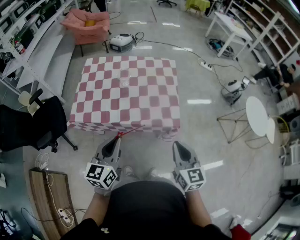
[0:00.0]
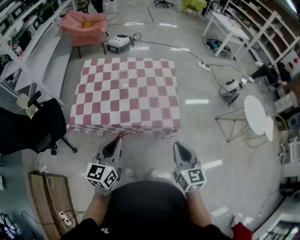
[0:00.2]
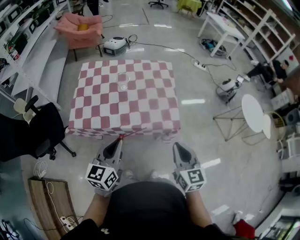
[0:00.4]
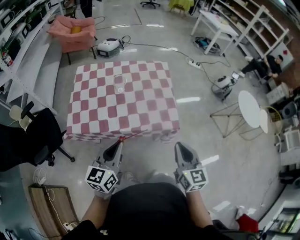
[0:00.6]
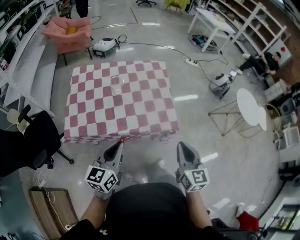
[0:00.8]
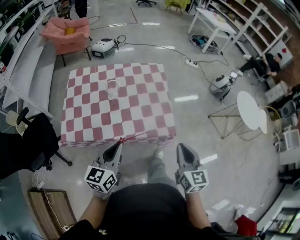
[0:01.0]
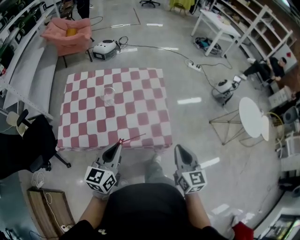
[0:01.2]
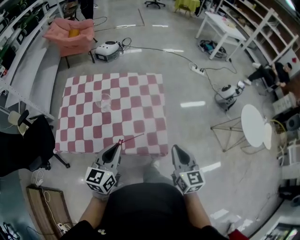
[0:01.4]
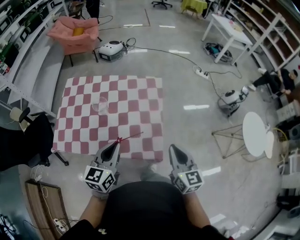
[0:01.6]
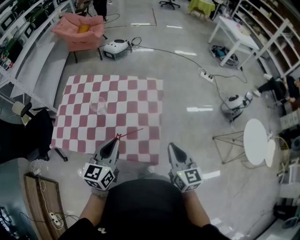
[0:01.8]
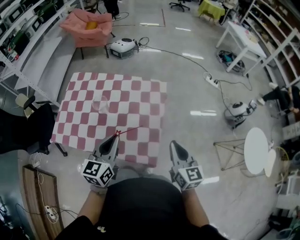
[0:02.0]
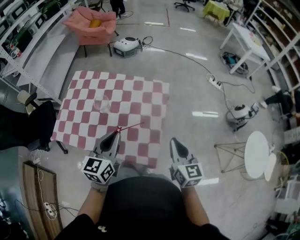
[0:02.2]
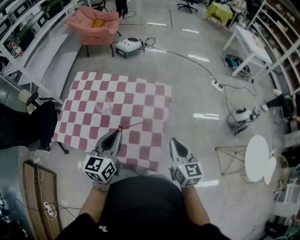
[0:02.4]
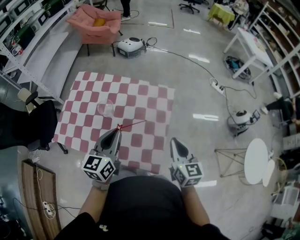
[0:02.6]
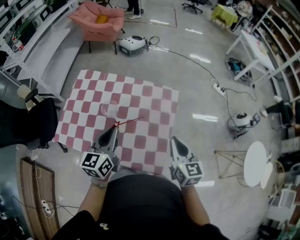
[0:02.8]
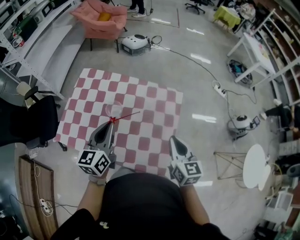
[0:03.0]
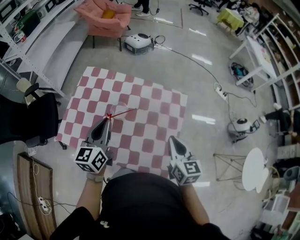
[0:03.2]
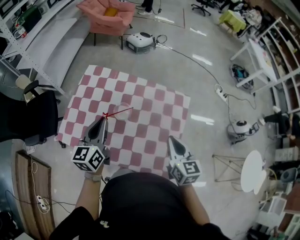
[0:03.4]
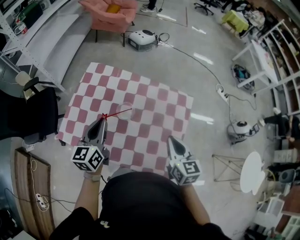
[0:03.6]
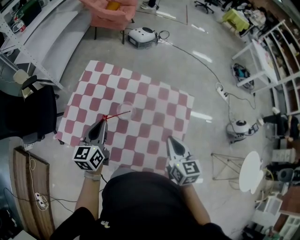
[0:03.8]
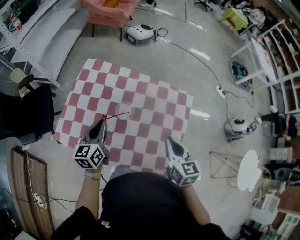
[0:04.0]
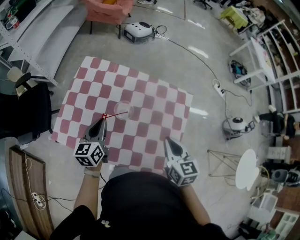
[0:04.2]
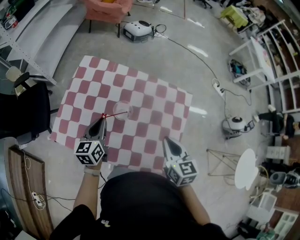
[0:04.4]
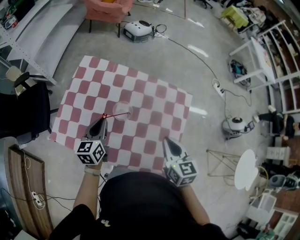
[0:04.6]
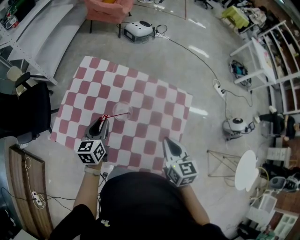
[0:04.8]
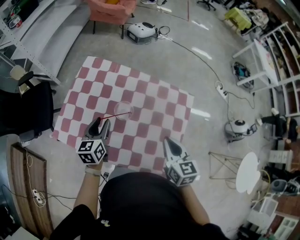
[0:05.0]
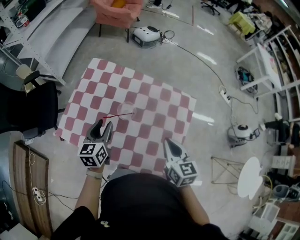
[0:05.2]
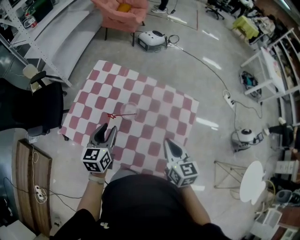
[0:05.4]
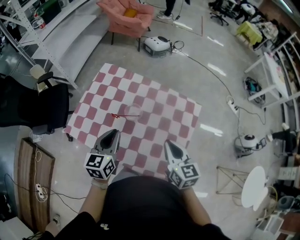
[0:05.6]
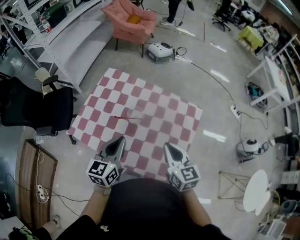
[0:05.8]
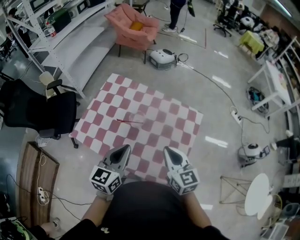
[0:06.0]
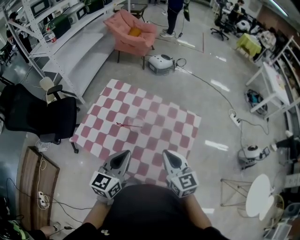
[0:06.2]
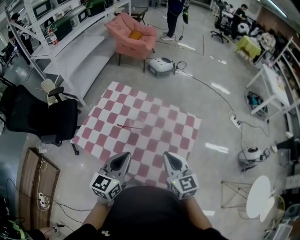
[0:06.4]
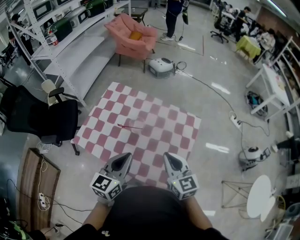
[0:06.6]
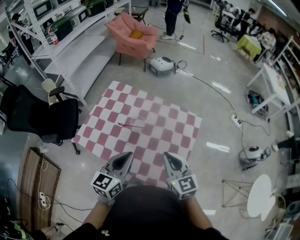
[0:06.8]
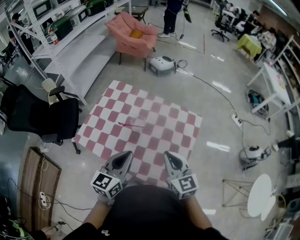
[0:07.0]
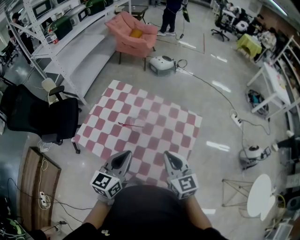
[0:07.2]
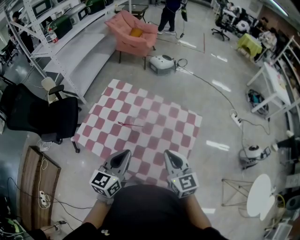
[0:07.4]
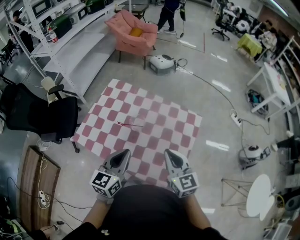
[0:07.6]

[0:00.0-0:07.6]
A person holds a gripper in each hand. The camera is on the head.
0:00.0 to 0:01.6: The right gripper heads forward, covering approximately 20 cm; the left gripper shifts about 25 cm forward and to the right.
0:01.6 to 0:03.0: The left gripper travels forward and to the left by roughly 15 cm; the right gripper travels forward by approximately 15 cm.
0:03.0 to 0:04.6: The right gripper heads to the left and forward, covering some 10 cm; the left gripper is displaced downward, to the left and forward by approximately 20 cm.
0:04.6 to 0:06.0: The left gripper is displaced backward, upward and to the right by approximately 20 cm, and opens, then closes once more, while the right gripper travels upward by approximately 5 cm, and rotates some 20 degrees.
0:06.0 to 0:07.6: The grippers stay close to where they were, moving slightly.

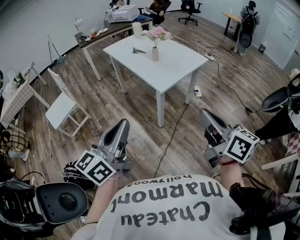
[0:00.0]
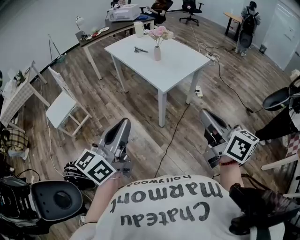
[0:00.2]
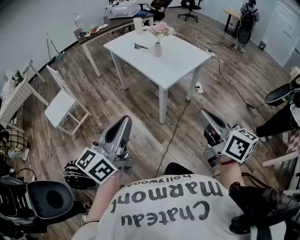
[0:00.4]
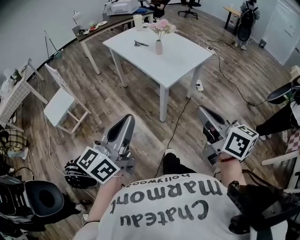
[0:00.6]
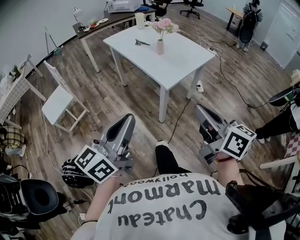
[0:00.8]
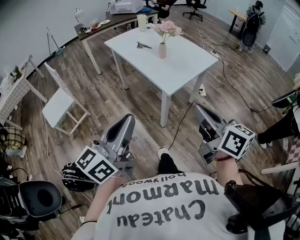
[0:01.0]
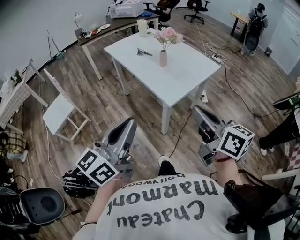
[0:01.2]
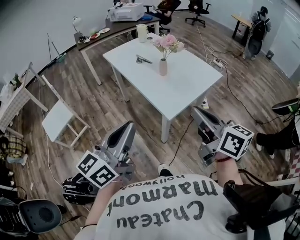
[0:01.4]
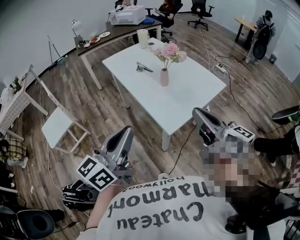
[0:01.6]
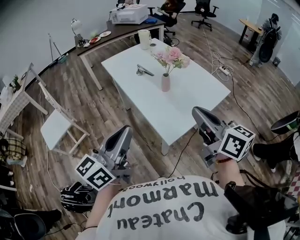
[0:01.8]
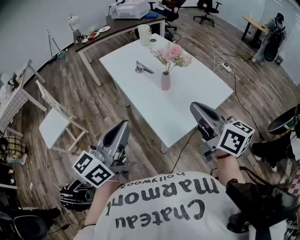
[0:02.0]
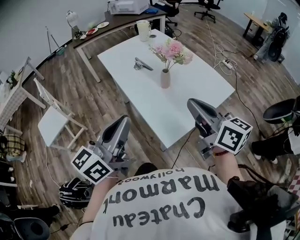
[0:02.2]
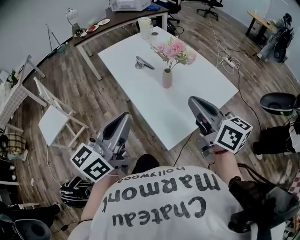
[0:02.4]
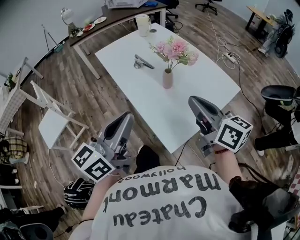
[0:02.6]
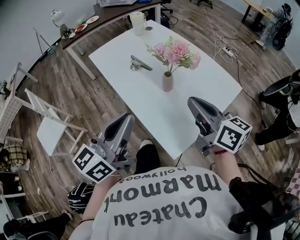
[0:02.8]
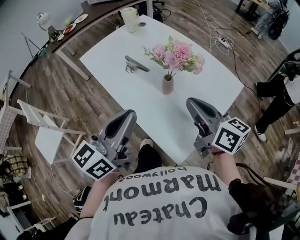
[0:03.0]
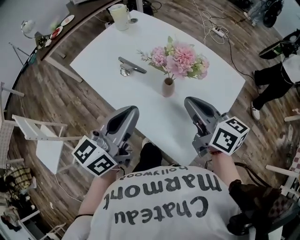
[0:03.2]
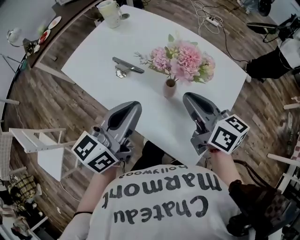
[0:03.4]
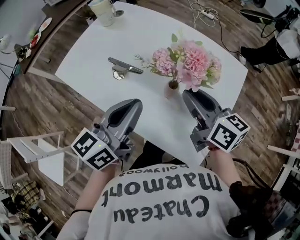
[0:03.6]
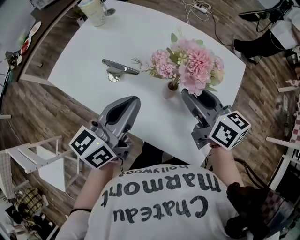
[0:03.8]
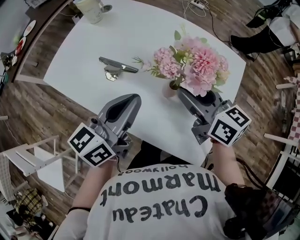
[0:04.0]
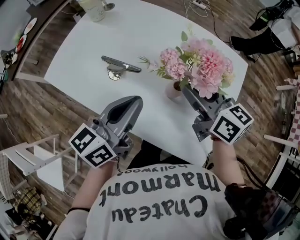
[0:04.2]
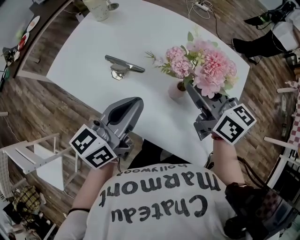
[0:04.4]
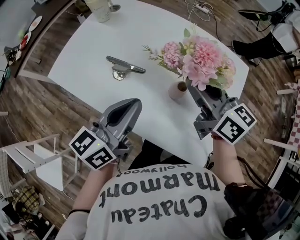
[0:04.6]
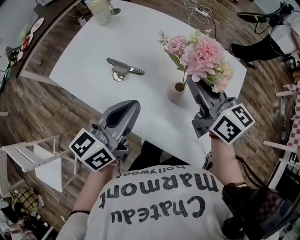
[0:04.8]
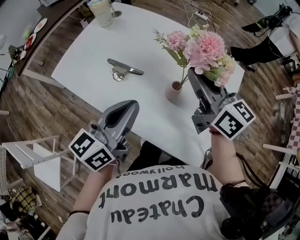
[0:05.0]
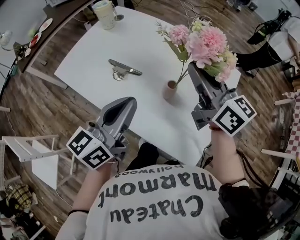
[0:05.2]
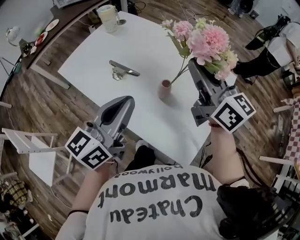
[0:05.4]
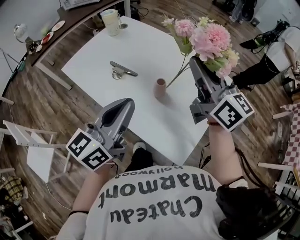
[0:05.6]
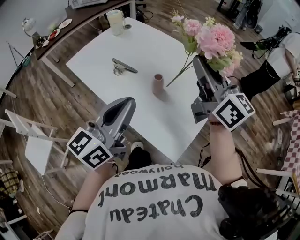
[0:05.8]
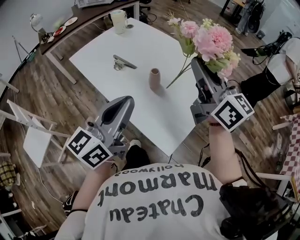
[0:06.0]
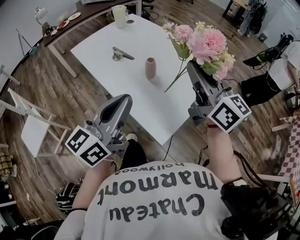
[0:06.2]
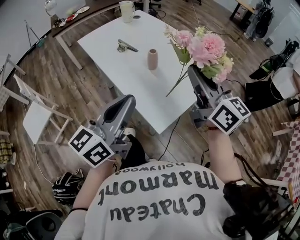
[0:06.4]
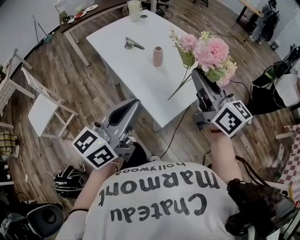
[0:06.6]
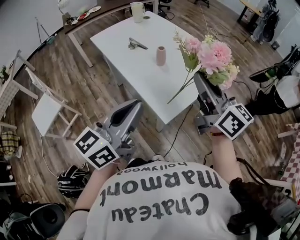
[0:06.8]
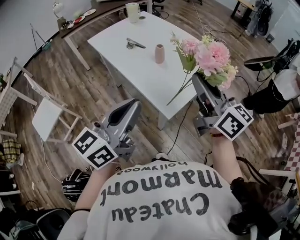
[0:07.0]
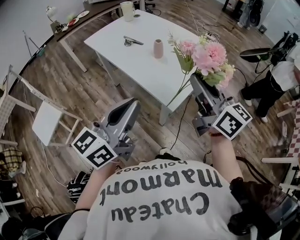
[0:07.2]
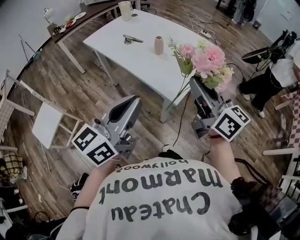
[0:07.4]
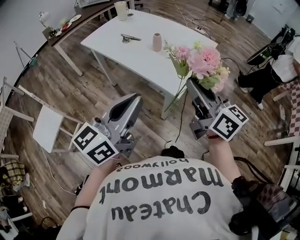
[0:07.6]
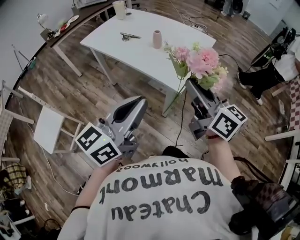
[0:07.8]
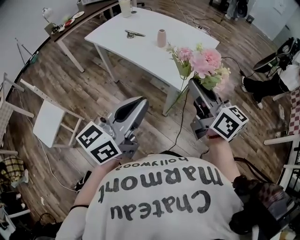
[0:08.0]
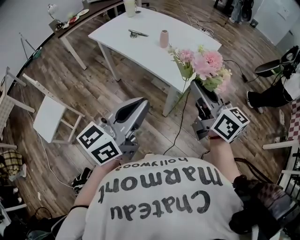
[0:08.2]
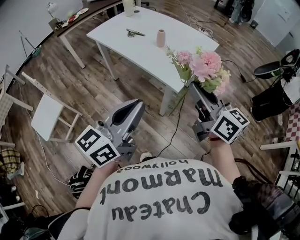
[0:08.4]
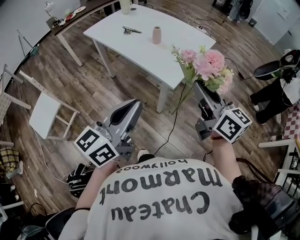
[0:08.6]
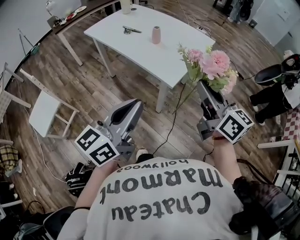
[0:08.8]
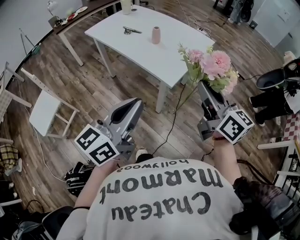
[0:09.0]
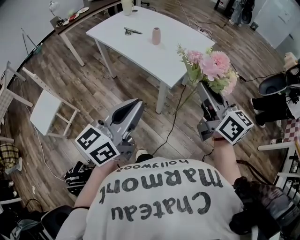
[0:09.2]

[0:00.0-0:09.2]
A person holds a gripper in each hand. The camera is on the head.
0:00.0 to 0:01.6: The grippers both shift forward by approximately 30 cm.
0:01.6 to 0:03.0: The two grippers go some 25 cm forward.
0:03.0 to 0:04.6: The right gripper heads forward and to the left, covering some 15 cm, and opens up; the left gripper heads forward and downward, covering some 15 cm, and turns by about 20 degrees.
0:04.6 to 0:06.2: The right gripper heads backward, upward and to the right, covering approximately 25 cm, rotates some 20 degrees, and closes up; the left gripper goes some 25 cm backward, to the right and upward, and rotates approximately 30 degrees.
0:06.2 to 0:07.6: The two grippers go roughly 25 cm backward.
0:07.6 to 0:09.2: The left gripper goes about 5 cm backward. The right gripper shifts about 10 cm to the right and backward.

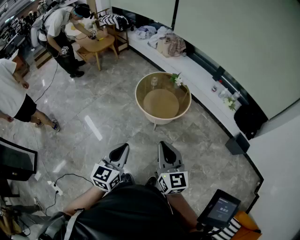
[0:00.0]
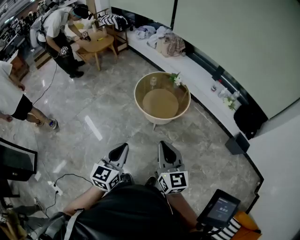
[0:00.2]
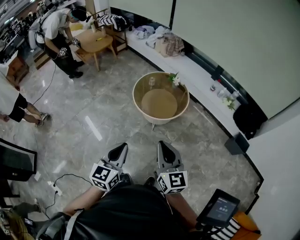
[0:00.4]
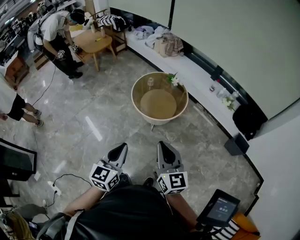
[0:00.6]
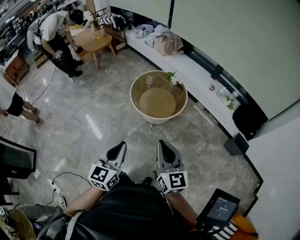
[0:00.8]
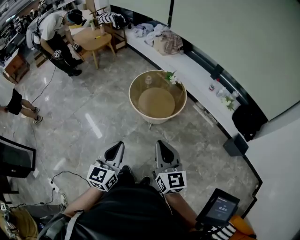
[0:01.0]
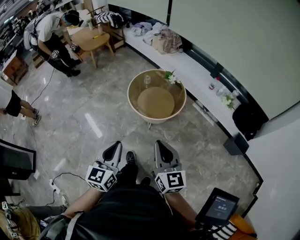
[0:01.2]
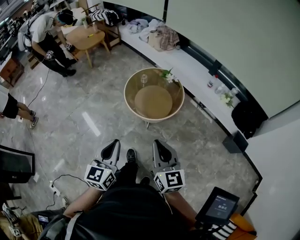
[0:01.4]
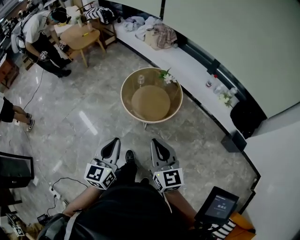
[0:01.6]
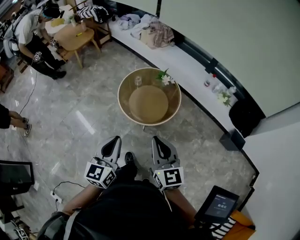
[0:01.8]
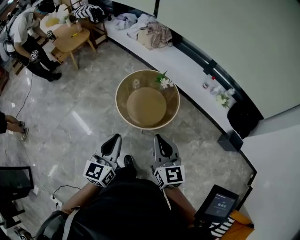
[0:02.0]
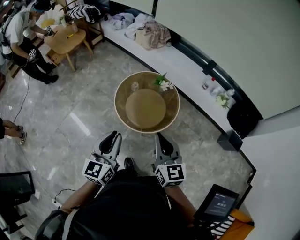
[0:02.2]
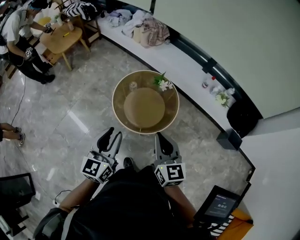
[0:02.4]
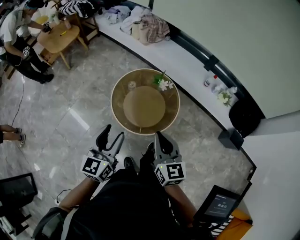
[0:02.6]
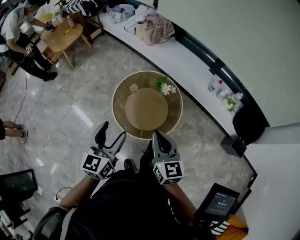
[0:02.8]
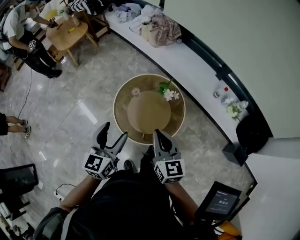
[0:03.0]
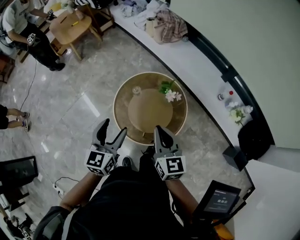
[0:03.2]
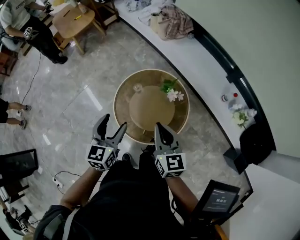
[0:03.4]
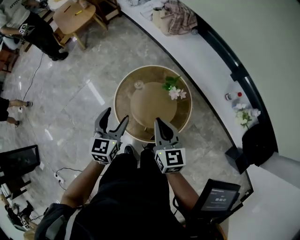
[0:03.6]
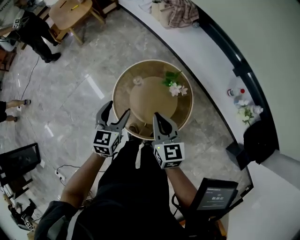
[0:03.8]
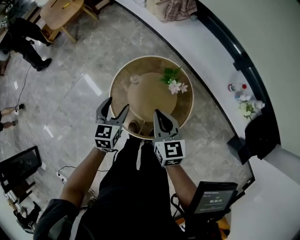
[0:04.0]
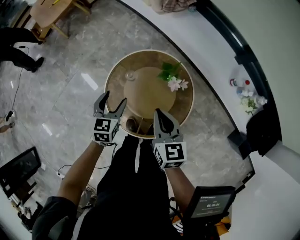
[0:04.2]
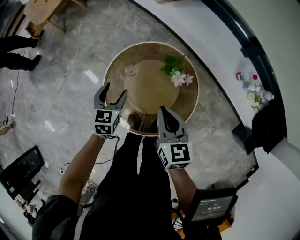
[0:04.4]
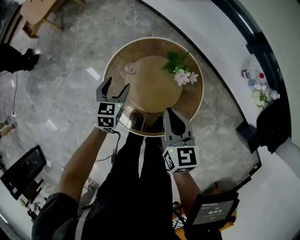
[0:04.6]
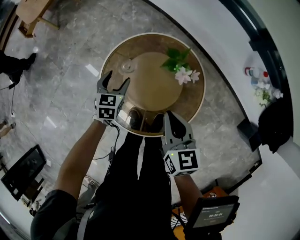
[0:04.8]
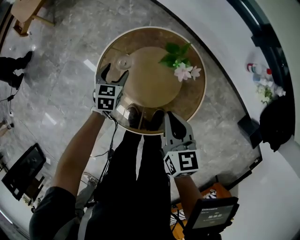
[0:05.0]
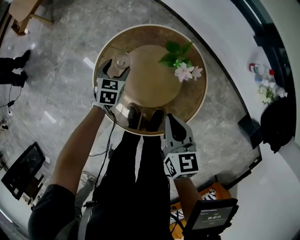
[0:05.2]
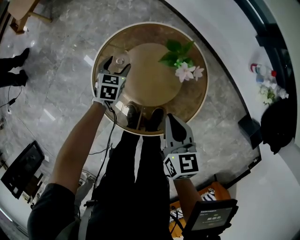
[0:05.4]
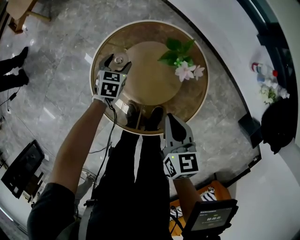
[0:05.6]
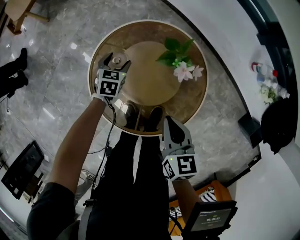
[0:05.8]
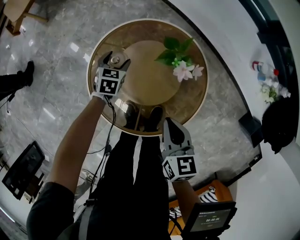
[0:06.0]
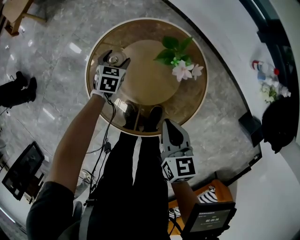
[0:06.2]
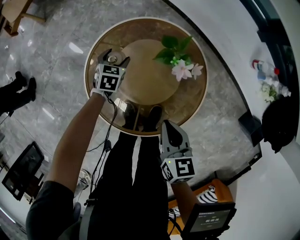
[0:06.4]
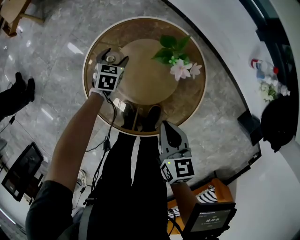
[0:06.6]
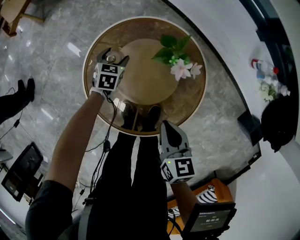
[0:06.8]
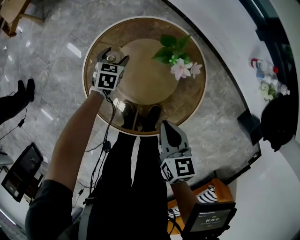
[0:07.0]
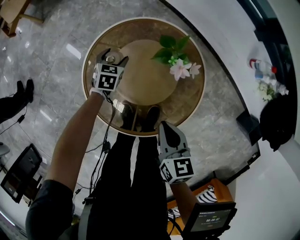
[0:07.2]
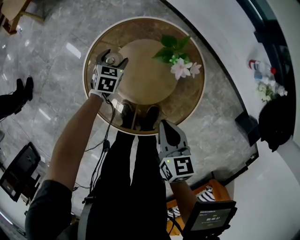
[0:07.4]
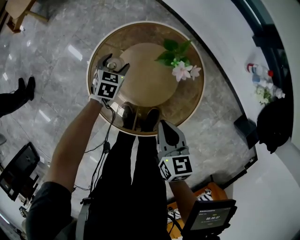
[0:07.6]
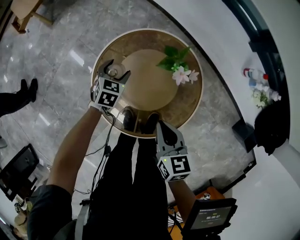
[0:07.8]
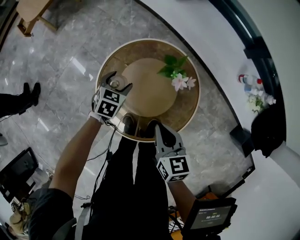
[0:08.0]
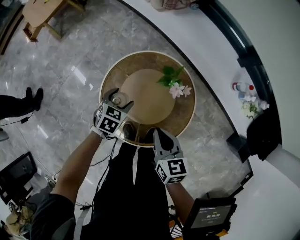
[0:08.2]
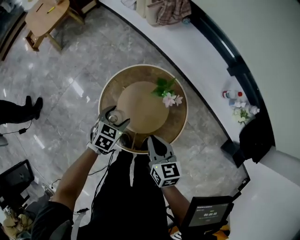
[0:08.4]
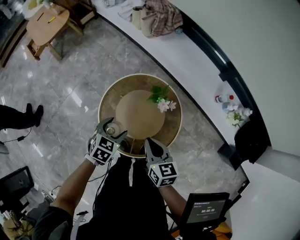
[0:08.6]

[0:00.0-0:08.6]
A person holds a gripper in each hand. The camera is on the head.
0:00.0 to 0:01.4: The right gripper is displaced forward and to the right by roughly 10 cm; the left gripper shifts about 10 cm forward.
0:01.4 to 0:02.8: Both grippers travel together forward, some 35 cm. The left gripper opens its fingers.
0:02.8 to 0:04.4: The left gripper is displaced downward and forward by approximately 40 cm, and swivels about 30 degrees, while the right gripper shifts about 30 cm forward and downward.
0:04.4 to 0:05.8: The left gripper is displaced downward by roughly 20 cm, while the right gripper moves downward, about 15 cm.
0:05.8 to 0:07.2: The grippers make only small movements.
0:07.2 to 0:08.6: The left gripper shifts about 35 cm upward and backward, while the right gripper is displaced upward by roughly 15 cm.
